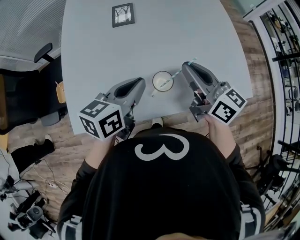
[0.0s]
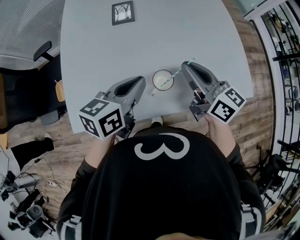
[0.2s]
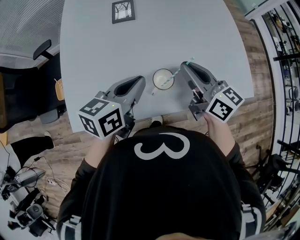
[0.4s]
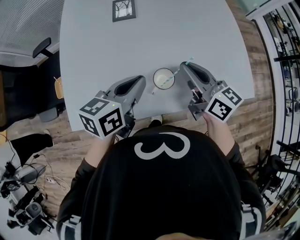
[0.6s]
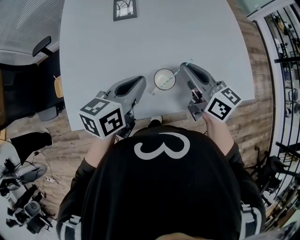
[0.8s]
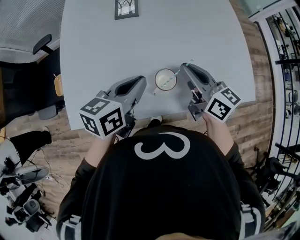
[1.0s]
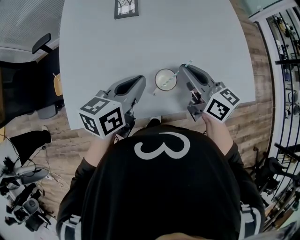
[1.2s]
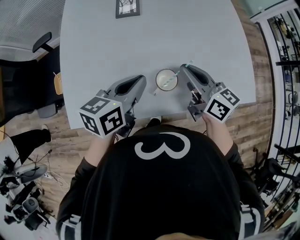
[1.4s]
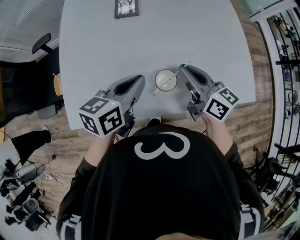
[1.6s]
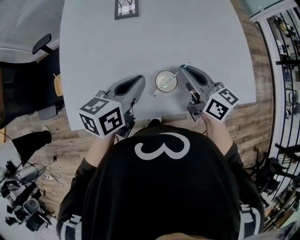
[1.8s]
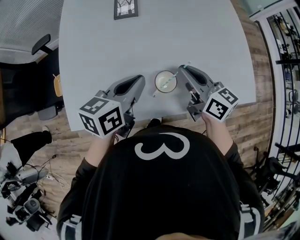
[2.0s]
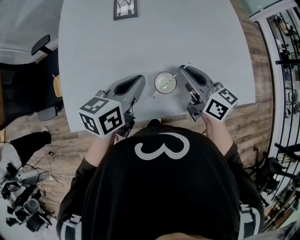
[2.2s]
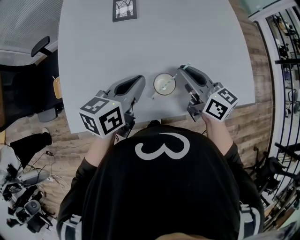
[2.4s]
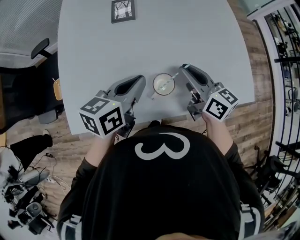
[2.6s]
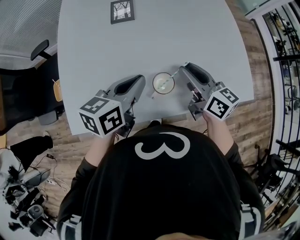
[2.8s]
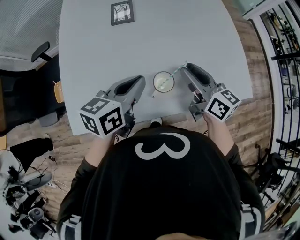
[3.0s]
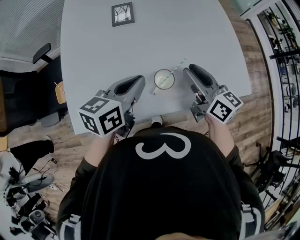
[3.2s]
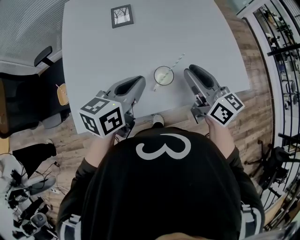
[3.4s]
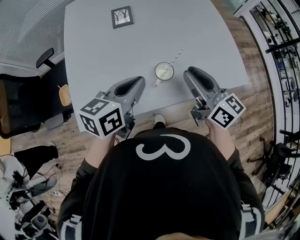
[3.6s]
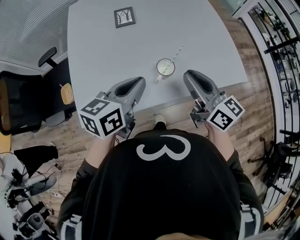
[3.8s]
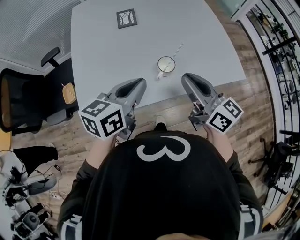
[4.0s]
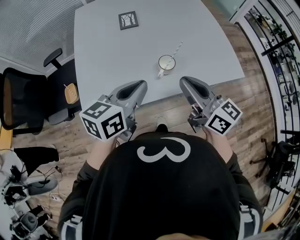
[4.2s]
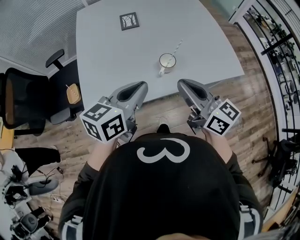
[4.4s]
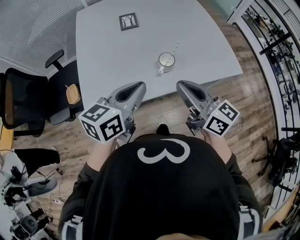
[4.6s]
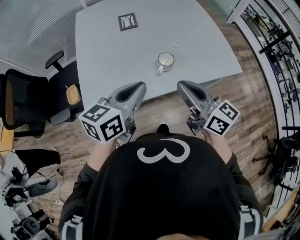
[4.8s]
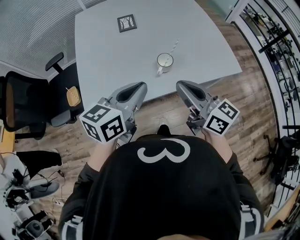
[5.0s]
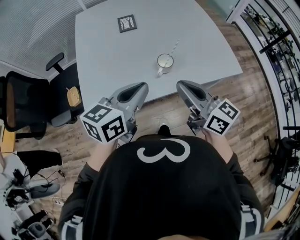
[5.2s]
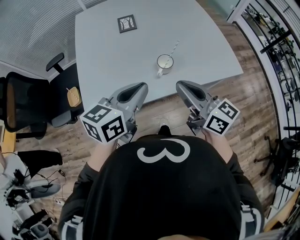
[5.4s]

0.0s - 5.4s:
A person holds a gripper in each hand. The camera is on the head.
0.0s - 1.4s: The right gripper moves downward, about 5 cm.
1.4s - 2.8s: The grippers make only small movements.
2.8s - 4.0s: The two grippers go about 15 cm backward and upward.
4.0s - 5.4s: The two grippers go approximately 5 cm backward.

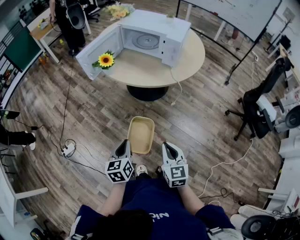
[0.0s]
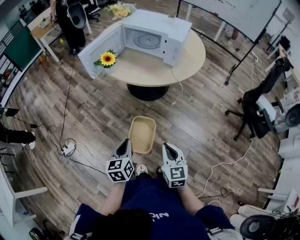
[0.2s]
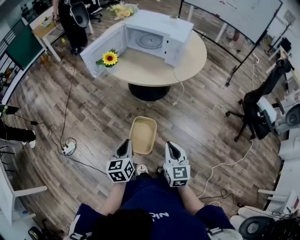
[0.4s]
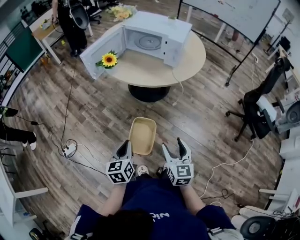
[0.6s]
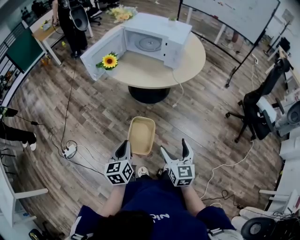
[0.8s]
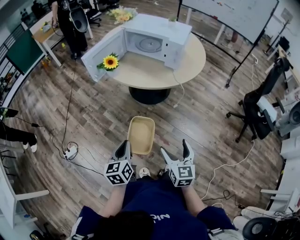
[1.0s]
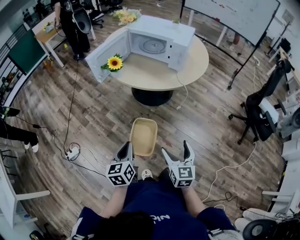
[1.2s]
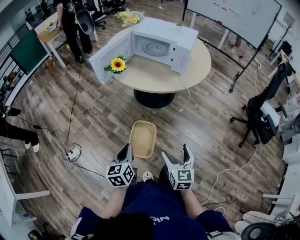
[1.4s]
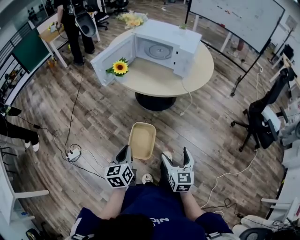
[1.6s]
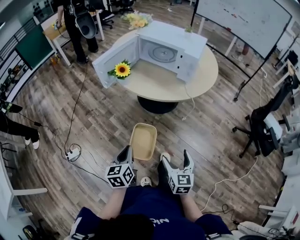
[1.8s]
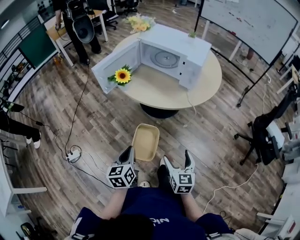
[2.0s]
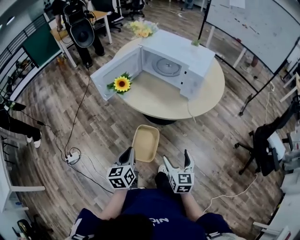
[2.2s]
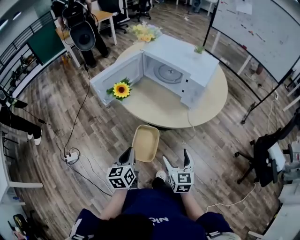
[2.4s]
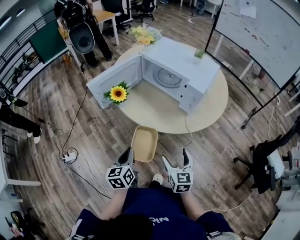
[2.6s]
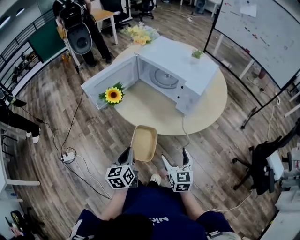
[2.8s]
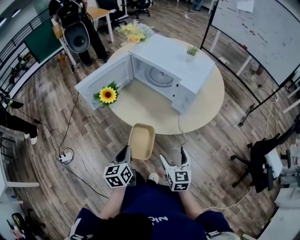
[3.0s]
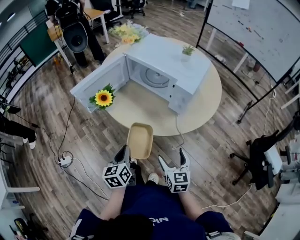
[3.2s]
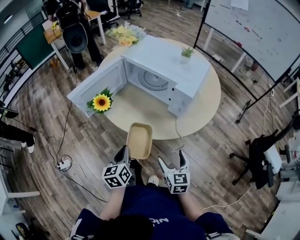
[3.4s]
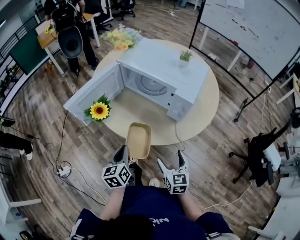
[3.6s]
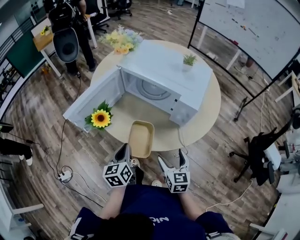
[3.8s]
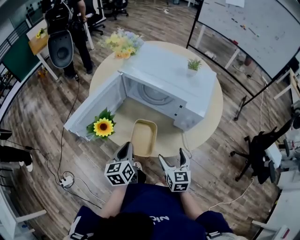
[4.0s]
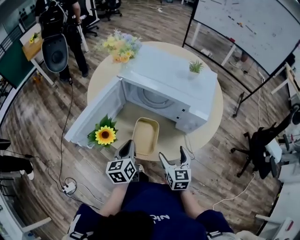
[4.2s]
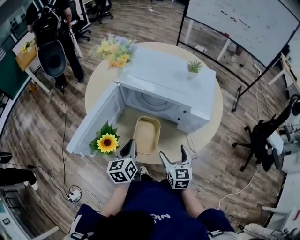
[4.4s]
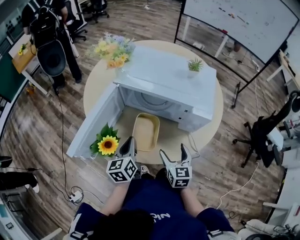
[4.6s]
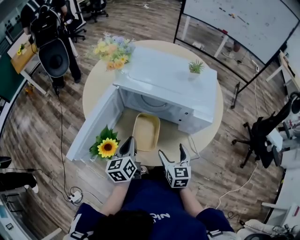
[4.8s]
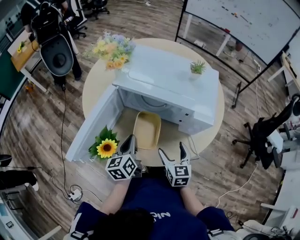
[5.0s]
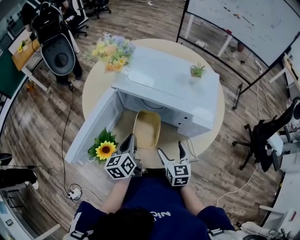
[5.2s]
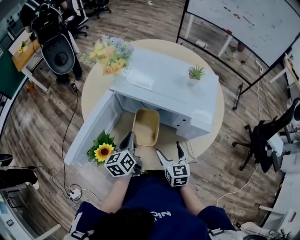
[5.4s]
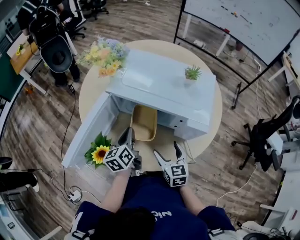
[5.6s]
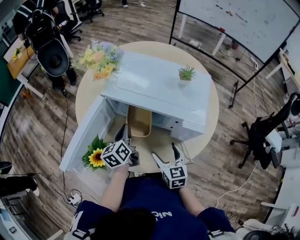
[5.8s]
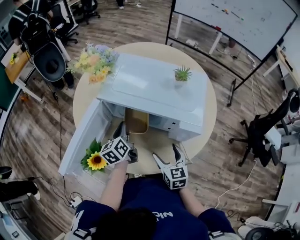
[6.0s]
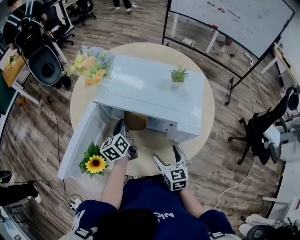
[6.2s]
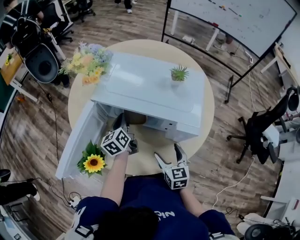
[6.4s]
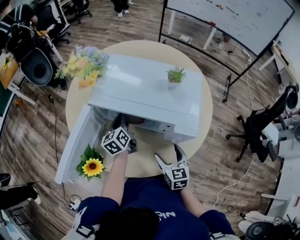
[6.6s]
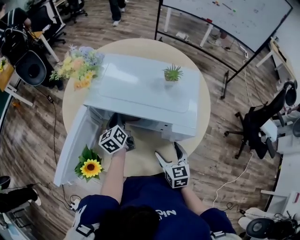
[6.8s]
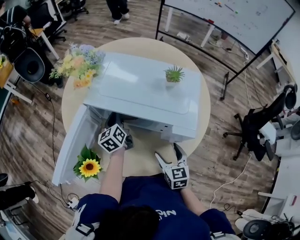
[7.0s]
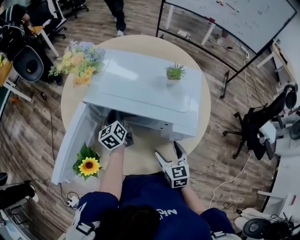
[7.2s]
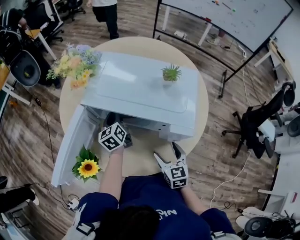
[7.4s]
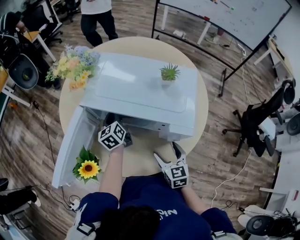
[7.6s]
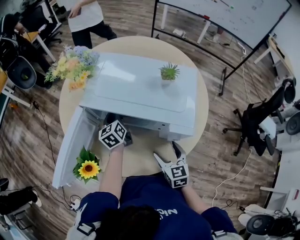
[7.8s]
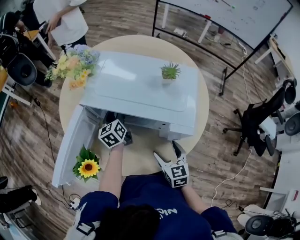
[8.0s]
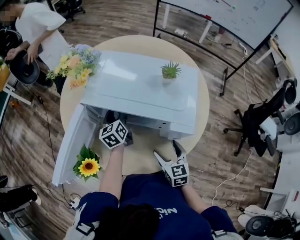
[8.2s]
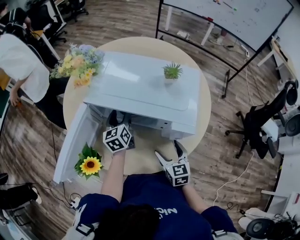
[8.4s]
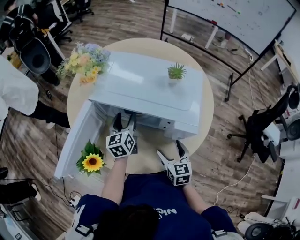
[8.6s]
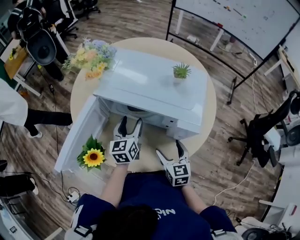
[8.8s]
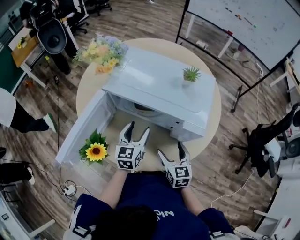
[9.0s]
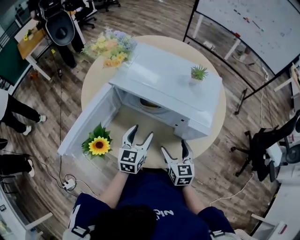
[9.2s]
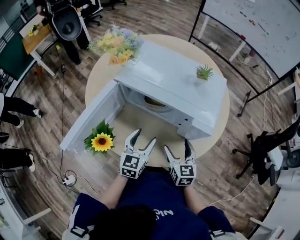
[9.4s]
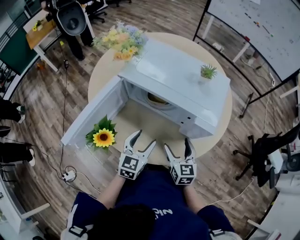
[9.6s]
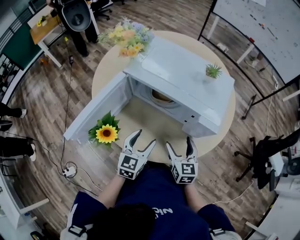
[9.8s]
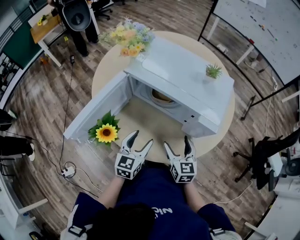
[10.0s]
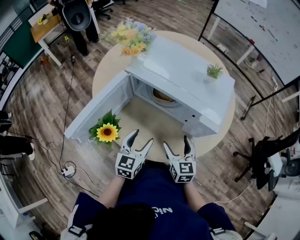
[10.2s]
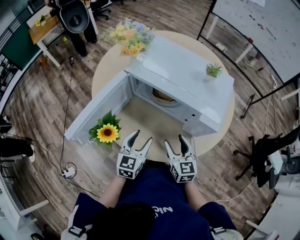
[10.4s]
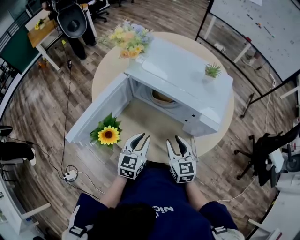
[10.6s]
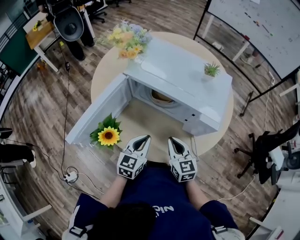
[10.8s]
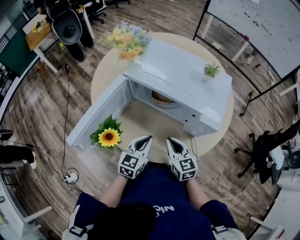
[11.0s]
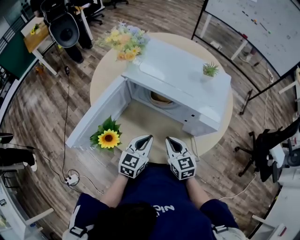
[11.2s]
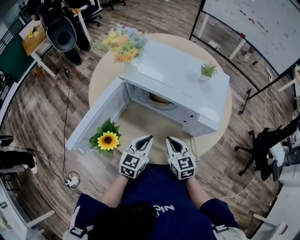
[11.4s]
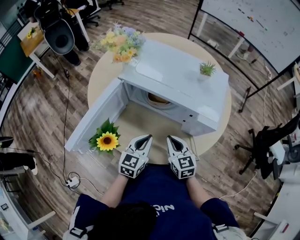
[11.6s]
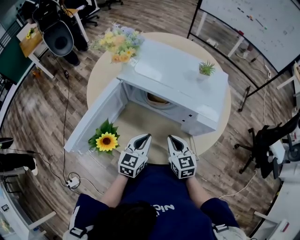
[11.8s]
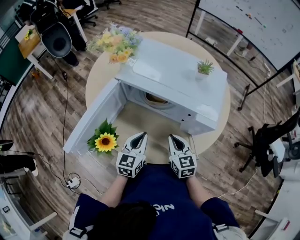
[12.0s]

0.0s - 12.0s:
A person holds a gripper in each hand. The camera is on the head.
0.0s - 1.6s: The right gripper opens up; the left gripper goes about 5 cm to the left.
1.6s - 3.0s: The two grippers go roughly 25 cm forward and to the right.
3.0s - 4.4s: Both grippers travel together forward, roughly 20 cm.
4.4s - 6.0s: The right gripper moves forward, some 5 cm, while the left gripper shifts about 15 cm forward.
6.0s - 7.6s: The right gripper moves about 5 cm. Meanwhile the left gripper heads forward, covering approximately 10 cm.
7.6s - 9.0s: The left gripper shifts approximately 15 cm backward, turns by about 20 degrees, and opens up.
9.0s - 10.4s: The left gripper heads backward, covering about 10 cm.
10.4s - 12.0s: The right gripper closes up, while the left gripper closes its fingers.

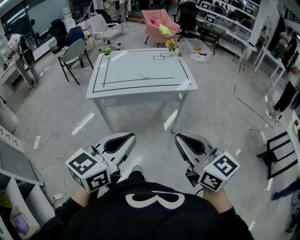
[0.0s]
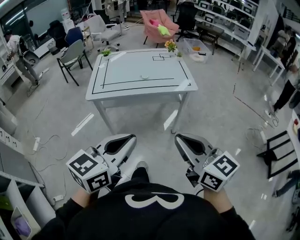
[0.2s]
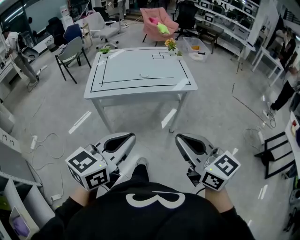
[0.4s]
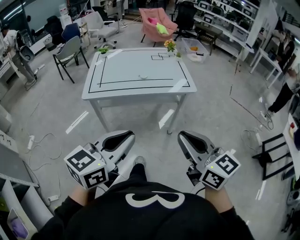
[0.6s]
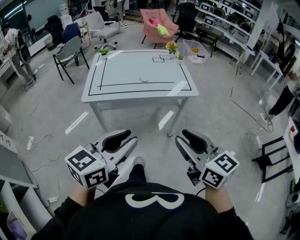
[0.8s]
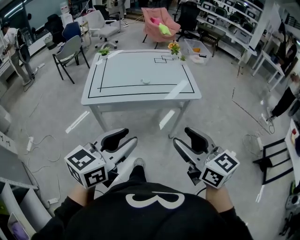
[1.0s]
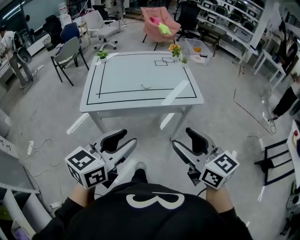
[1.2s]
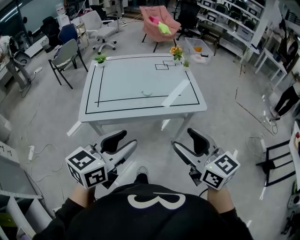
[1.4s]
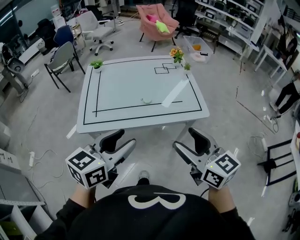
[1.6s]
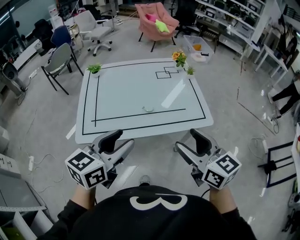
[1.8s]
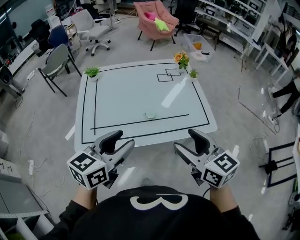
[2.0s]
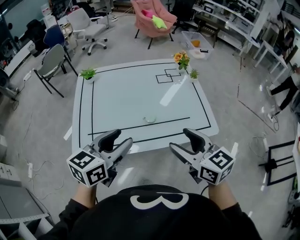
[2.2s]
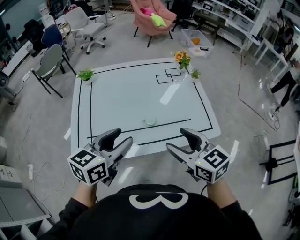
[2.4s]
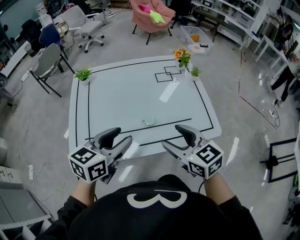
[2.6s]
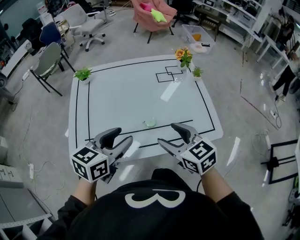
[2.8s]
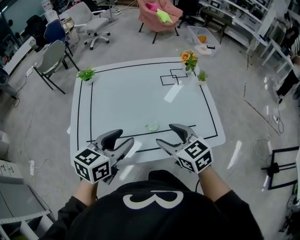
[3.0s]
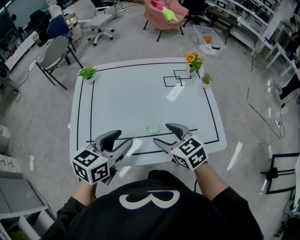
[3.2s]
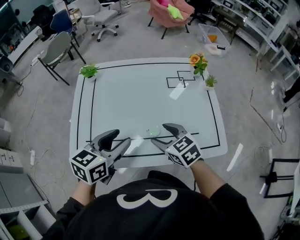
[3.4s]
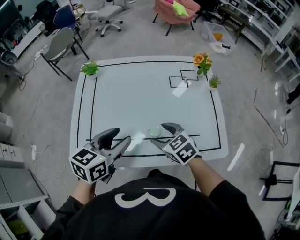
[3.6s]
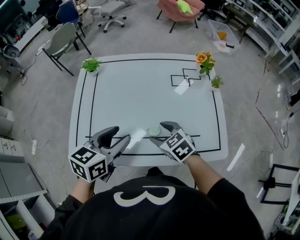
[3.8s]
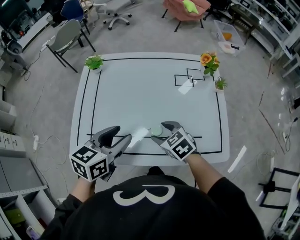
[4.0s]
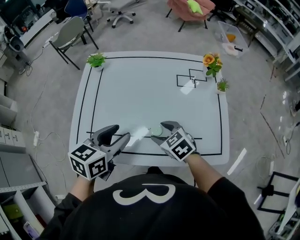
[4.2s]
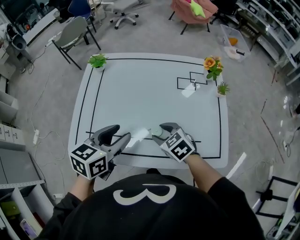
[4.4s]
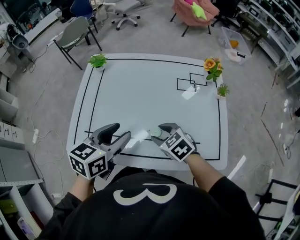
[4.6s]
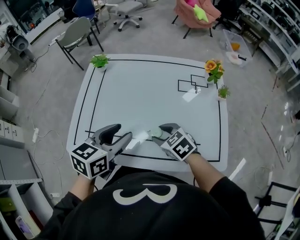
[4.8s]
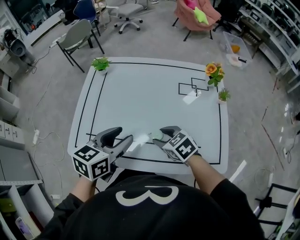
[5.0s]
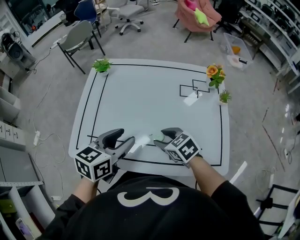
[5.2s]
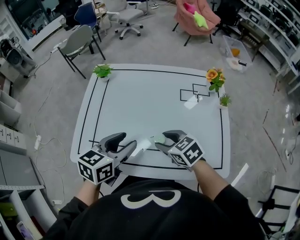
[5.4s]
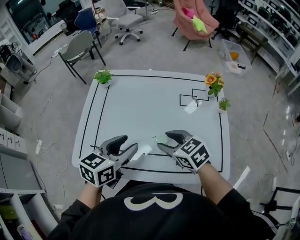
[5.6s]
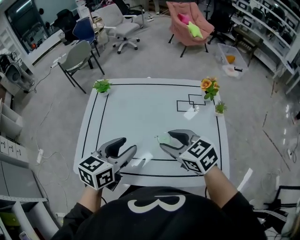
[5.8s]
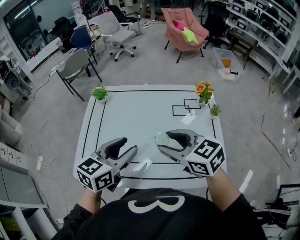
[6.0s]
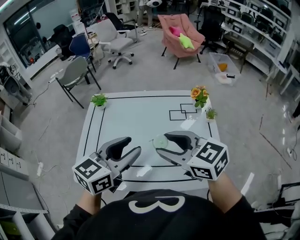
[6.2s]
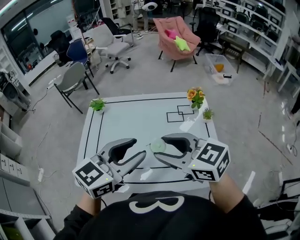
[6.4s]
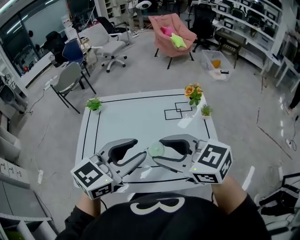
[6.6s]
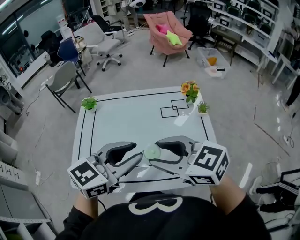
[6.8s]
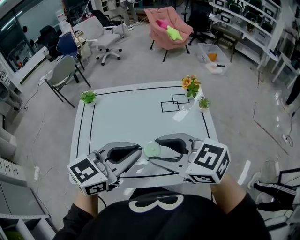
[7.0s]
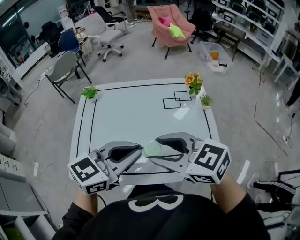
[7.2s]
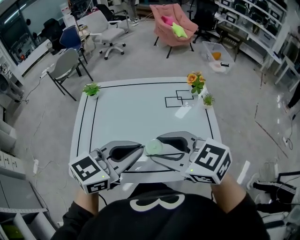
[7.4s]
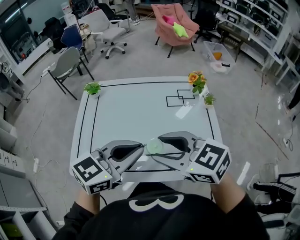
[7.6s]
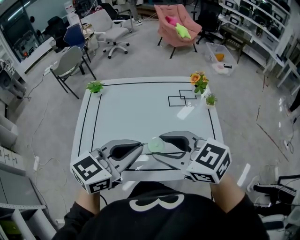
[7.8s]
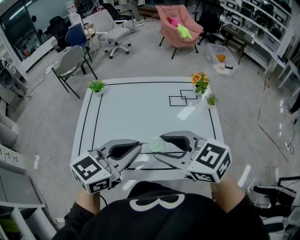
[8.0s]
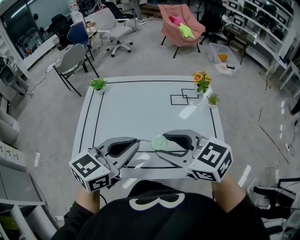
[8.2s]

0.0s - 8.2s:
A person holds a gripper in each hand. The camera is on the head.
0.0s - 1.6s: The grippers both shift forward by approximately 30 cm. The left gripper opens its fingers, while the right gripper opens up.
1.6s - 3.2s: Both grippers move forward and downward, approximately 30 cm. The right gripper swivels roughly 30 degrees.
3.2s - 5.0s: The right gripper travels downward by some 10 cm, and turns by some 20 degrees.
5.0s - 6.6s: The left gripper shifts about 15 cm upward and to the right, and changes its angle by approximately 30 degrees; the right gripper shifts approximately 25 cm upward, and swivels roughly 30 degrees.
6.6s - 8.2s: The left gripper moves downward, some 5 cm, and closes its fingers. The right gripper shifts by about 5 cm.
